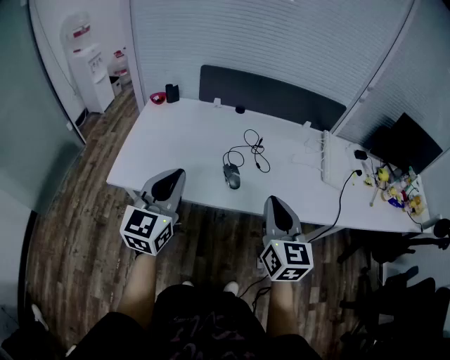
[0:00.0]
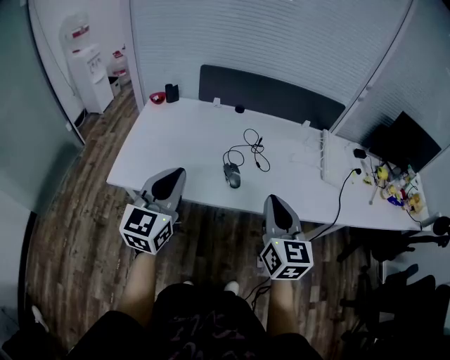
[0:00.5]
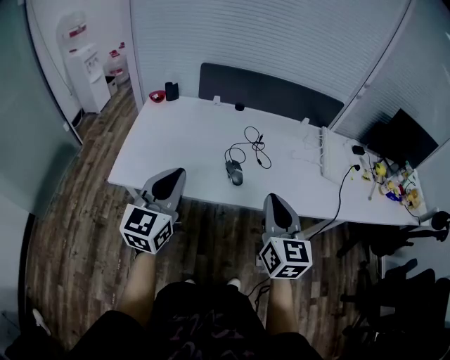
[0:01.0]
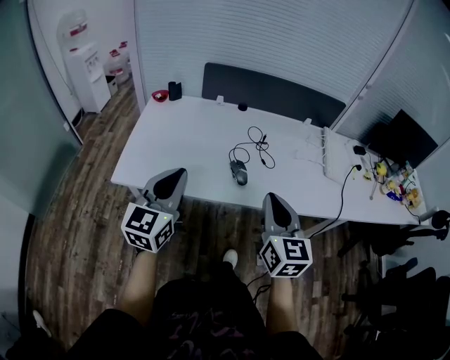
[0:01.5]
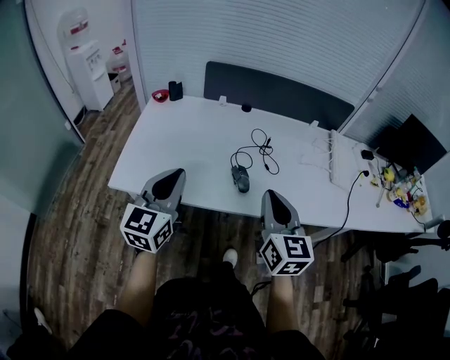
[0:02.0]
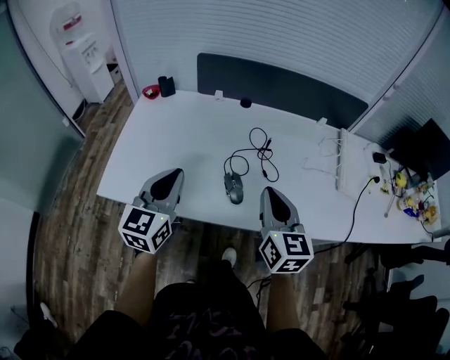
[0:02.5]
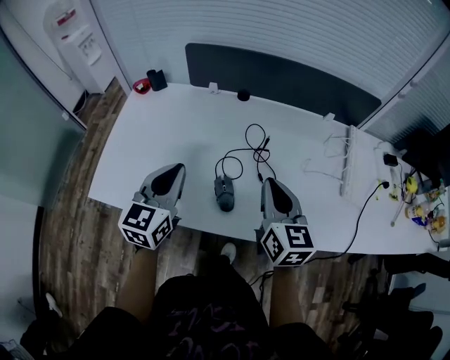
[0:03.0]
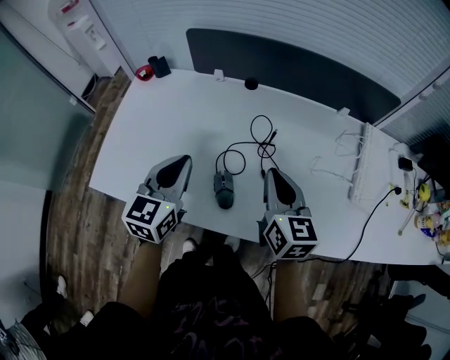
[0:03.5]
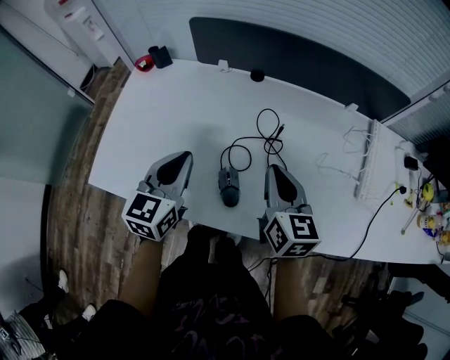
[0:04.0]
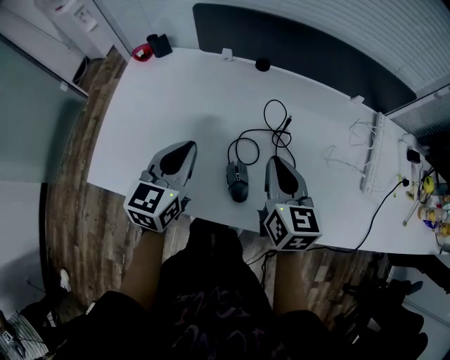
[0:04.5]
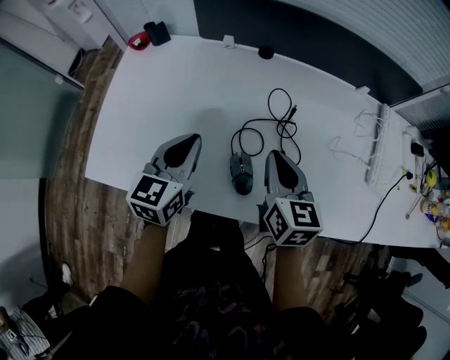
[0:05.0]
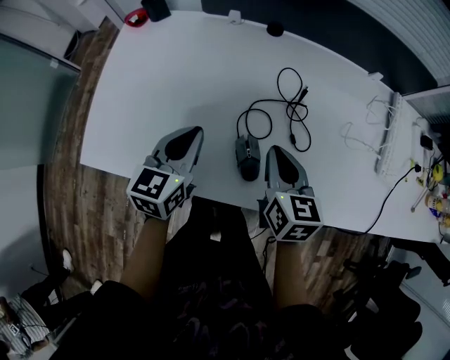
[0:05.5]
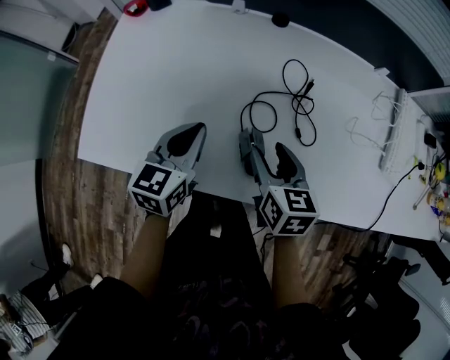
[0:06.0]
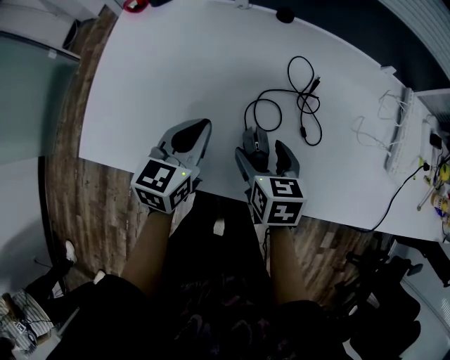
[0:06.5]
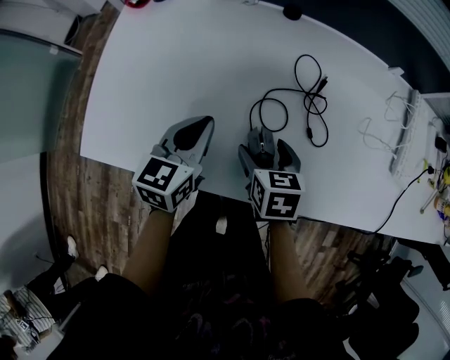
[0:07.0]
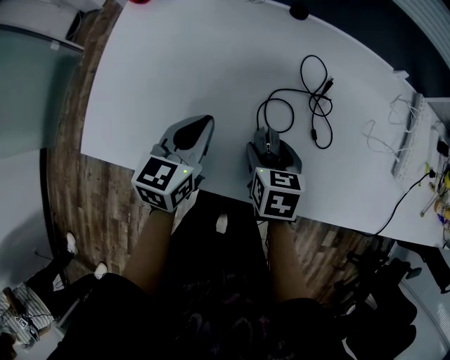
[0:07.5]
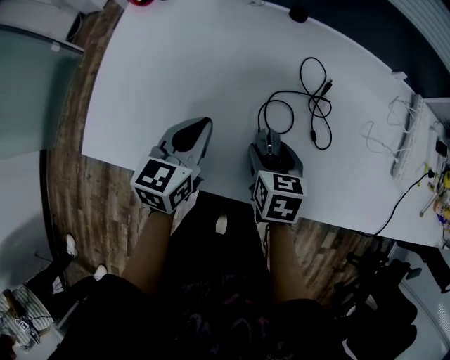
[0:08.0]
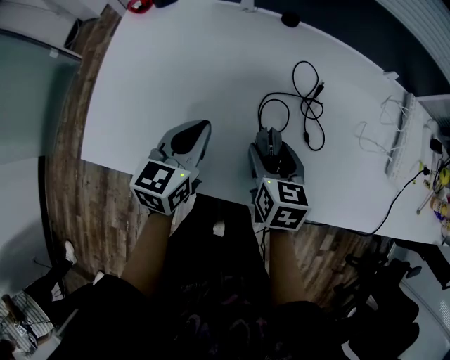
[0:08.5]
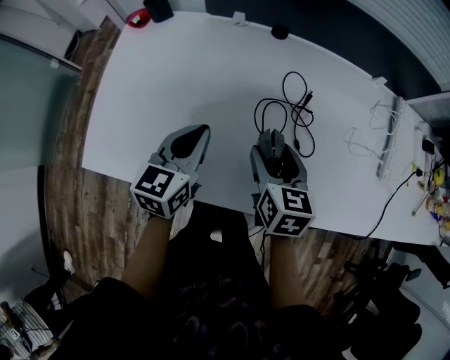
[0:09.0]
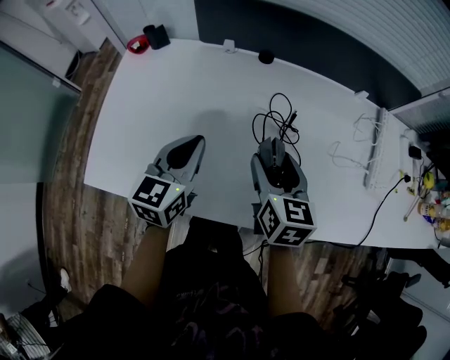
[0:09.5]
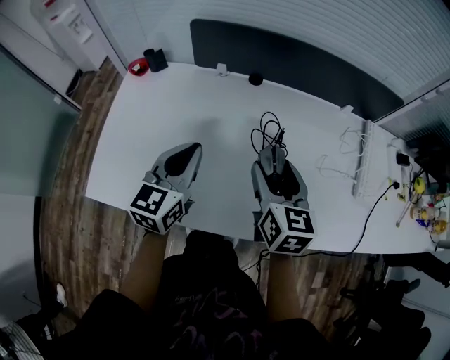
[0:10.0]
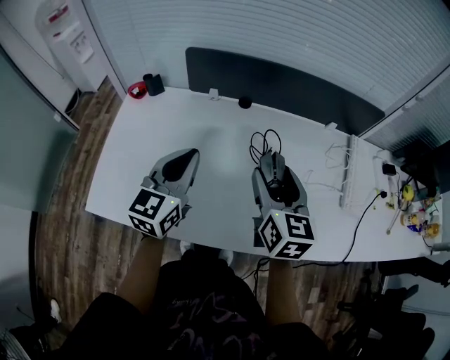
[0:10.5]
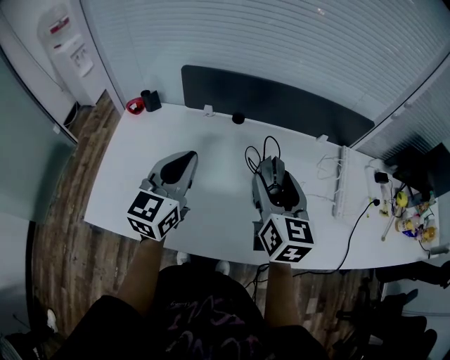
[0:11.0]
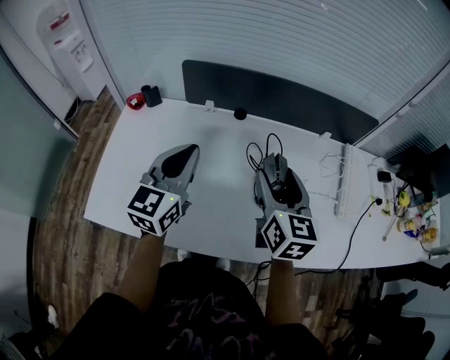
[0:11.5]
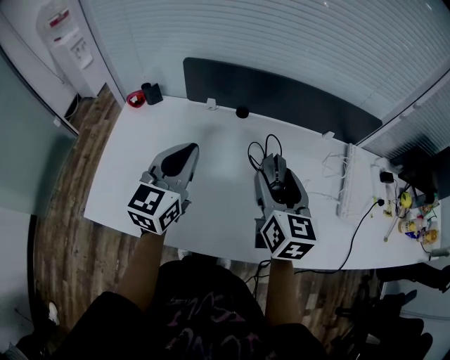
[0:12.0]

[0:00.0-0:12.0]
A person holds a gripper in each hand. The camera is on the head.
0:00.0 to 0:02.0: The left gripper shifts by about 5 cm, while the right gripper goes roughly 5 cm to the left.
0:02.0 to 0:04.0: The left gripper is displaced forward, downward and to the right by roughly 25 cm, while the right gripper heads forward and downward, covering some 25 cm.
0:04.0 to 0:06.0: The left gripper is displaced downward by some 10 cm. The right gripper goes some 15 cm downward and to the left, and opens up.
0:06.0 to 0:08.0: The right gripper heads downward, covering some 5 cm.
0:08.0 to 0:10.0: The two grippers go approximately 15 cm upward. The right gripper changes its angle by roughly 30 degrees.
0:10.0 to 0:12.0: The grippers both shift upward by some 5 cm.

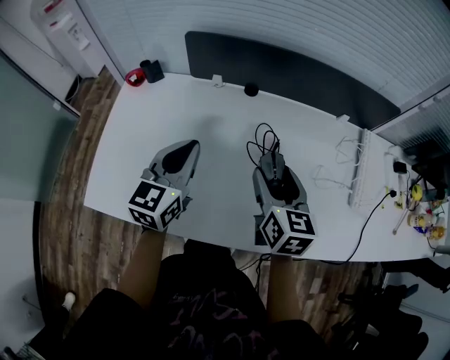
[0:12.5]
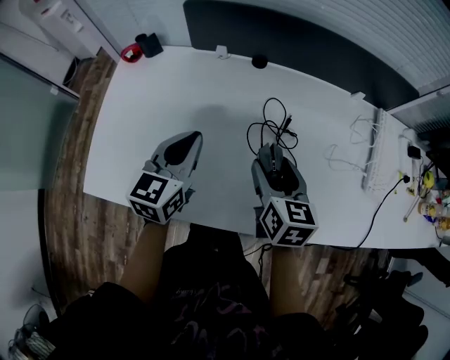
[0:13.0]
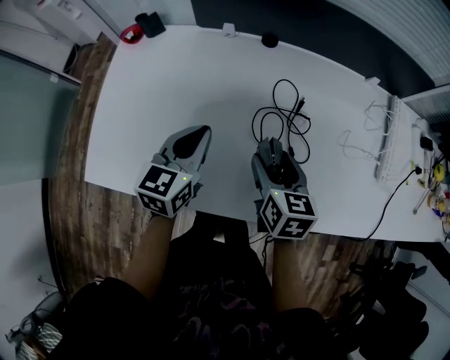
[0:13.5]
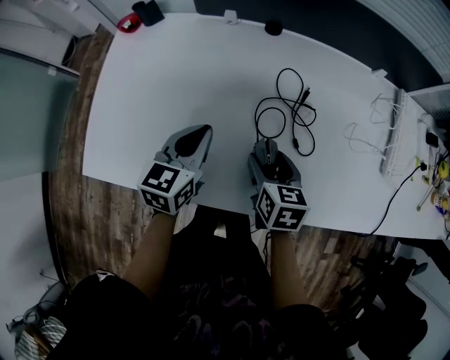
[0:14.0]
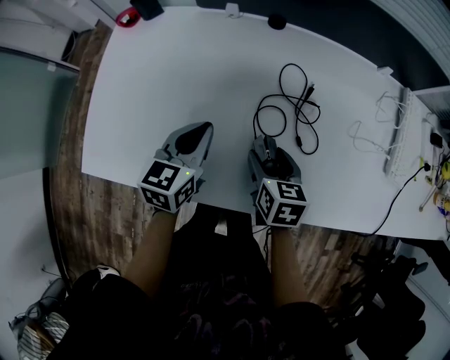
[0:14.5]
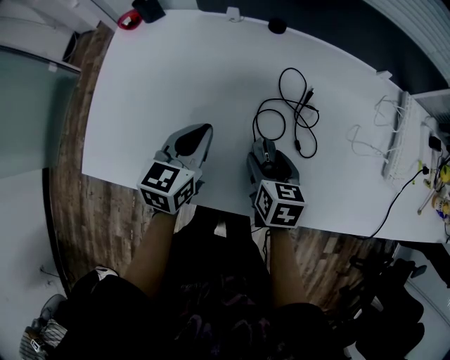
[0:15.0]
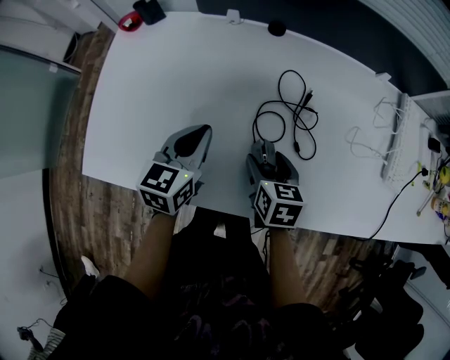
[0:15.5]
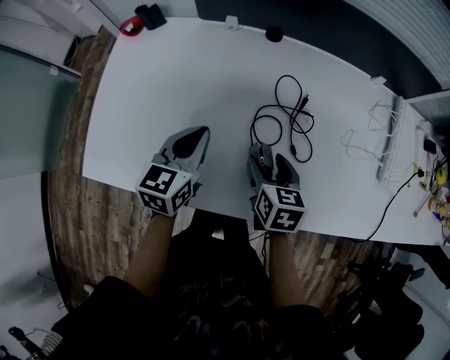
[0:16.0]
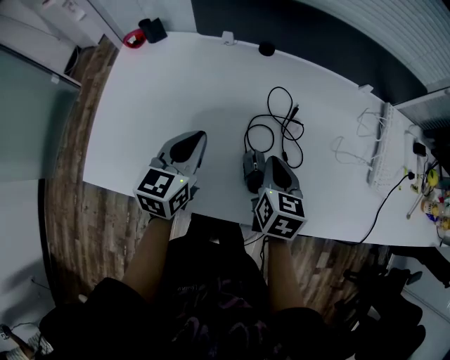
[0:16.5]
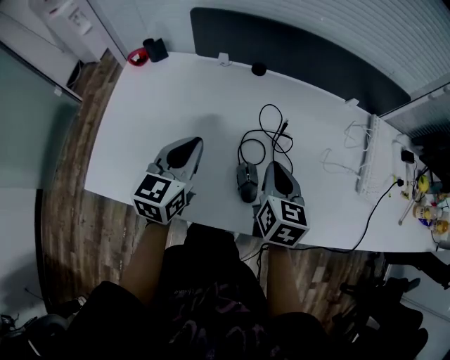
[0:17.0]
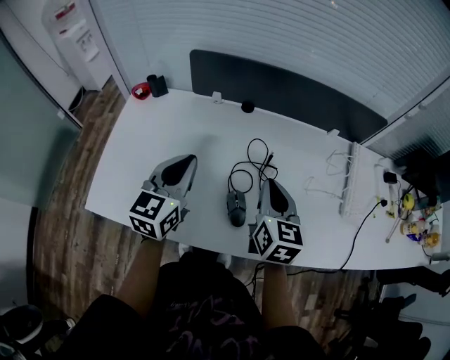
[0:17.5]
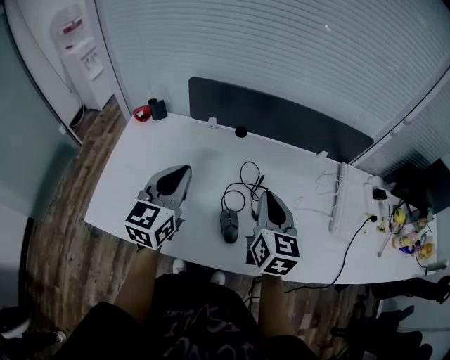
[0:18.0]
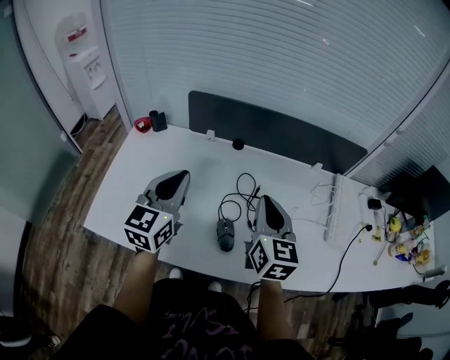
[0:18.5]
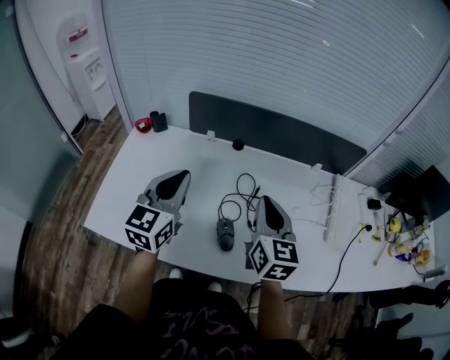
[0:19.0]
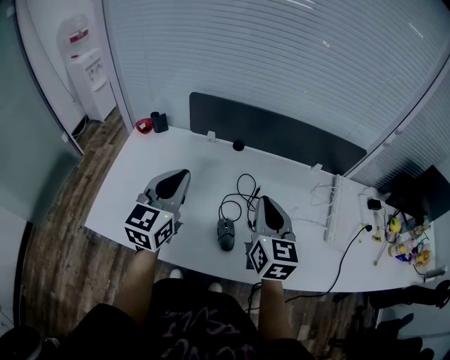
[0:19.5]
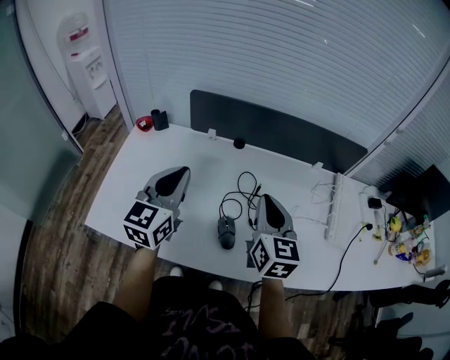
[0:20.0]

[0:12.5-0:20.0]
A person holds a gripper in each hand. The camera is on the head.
0:12.5 to 0:14.5: The two grippers go some 15 cm downward. The right gripper rotates some 20 degrees.
0:14.5 to 0:16.5: The right gripper heads upward, covering about 5 cm, and closes.
0:16.5 to 0:18.0: The grippers both shift upward by roughly 15 cm. The right gripper swivels approximately 20 degrees.
0:18.0 to 0:20.0: There are only small adjustments of the grippers.

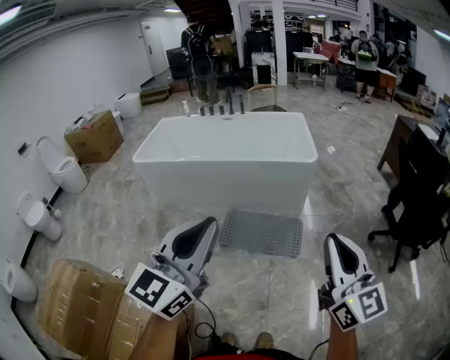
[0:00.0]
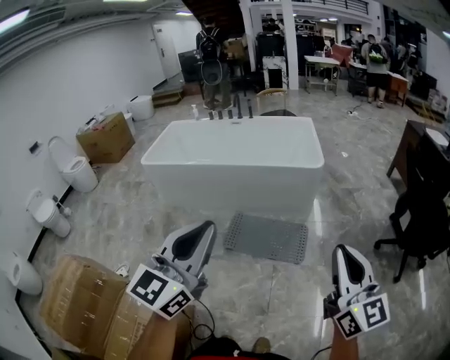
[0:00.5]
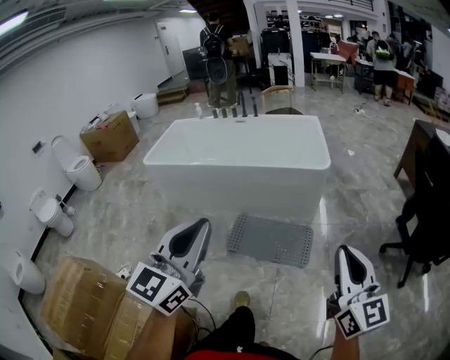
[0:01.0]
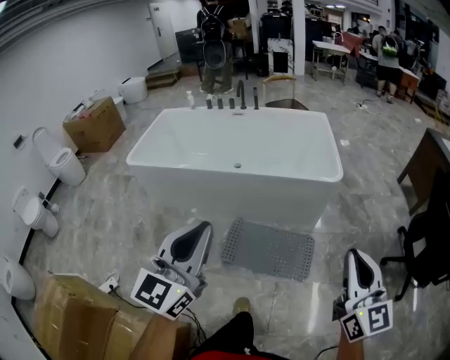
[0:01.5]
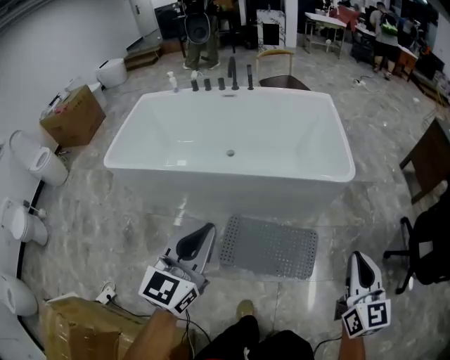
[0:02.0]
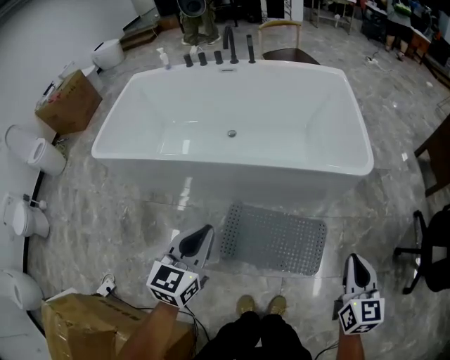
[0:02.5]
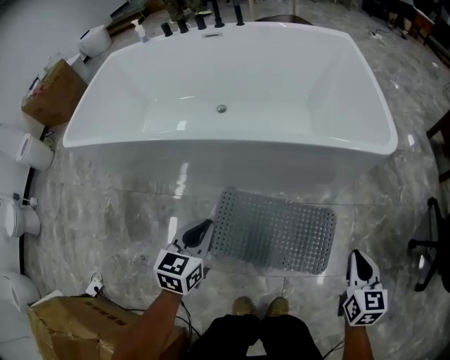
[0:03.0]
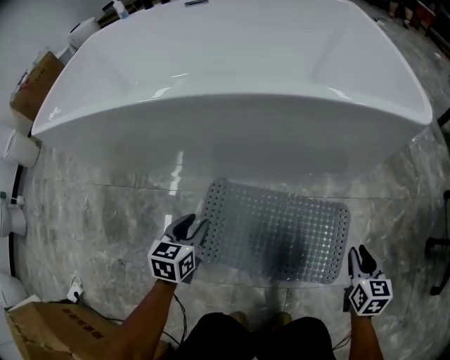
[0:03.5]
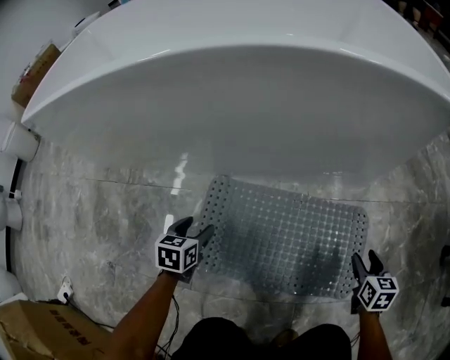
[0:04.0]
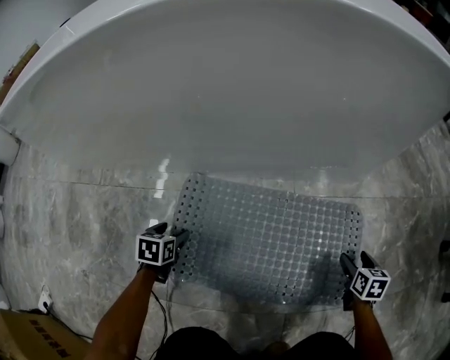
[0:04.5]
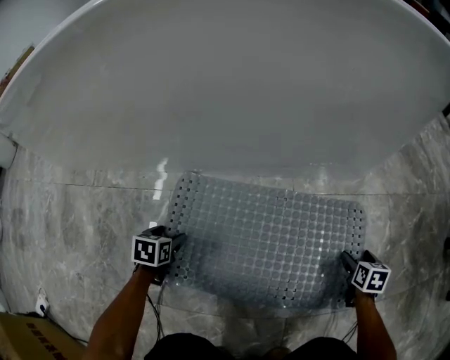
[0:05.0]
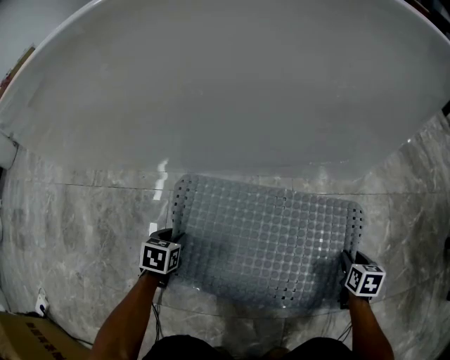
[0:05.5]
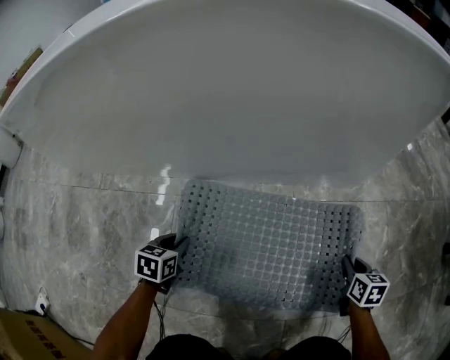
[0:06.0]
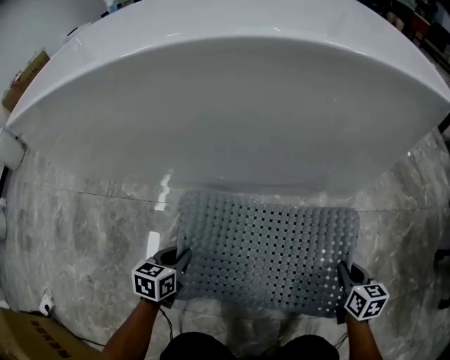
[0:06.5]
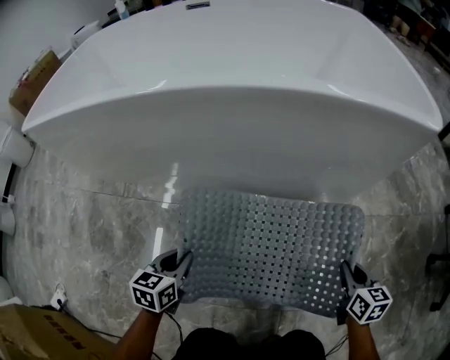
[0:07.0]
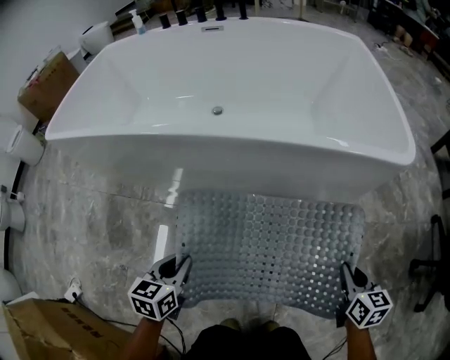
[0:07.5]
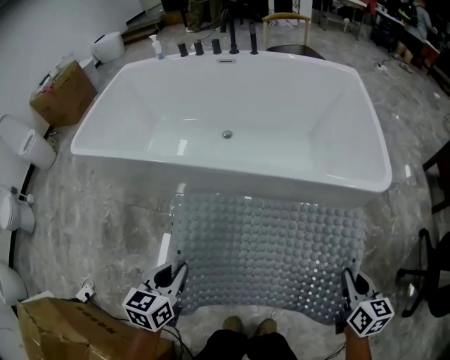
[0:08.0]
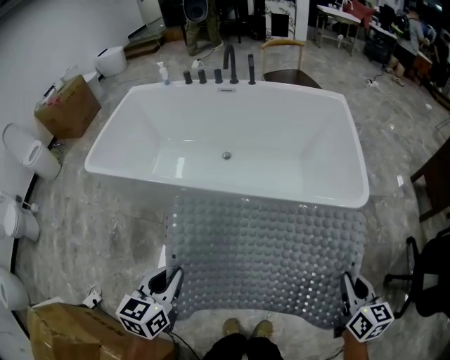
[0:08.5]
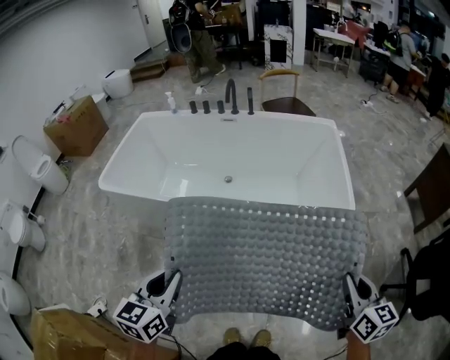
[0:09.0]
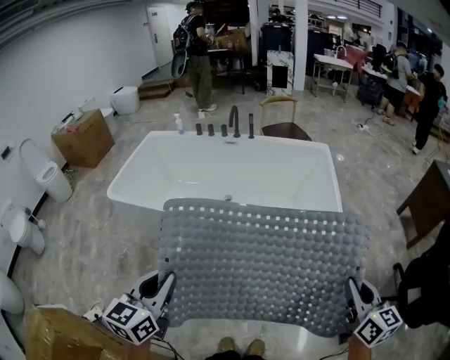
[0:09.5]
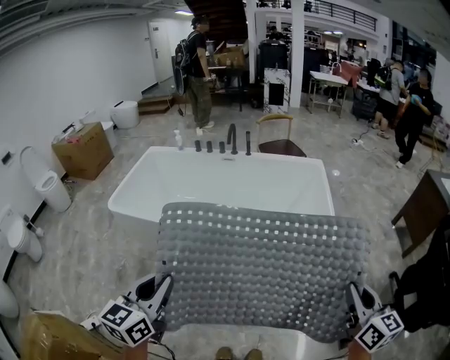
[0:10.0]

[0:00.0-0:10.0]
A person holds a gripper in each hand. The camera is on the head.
0:00.0 to 0:02.0: The two grippers travel together, forward, approximately 40 cm. Both grippers move downward, approximately 20 cm. The right gripper turns by roughly 20 degrees.
0:02.0 to 0:04.0: Both grippers travel together downward, roughly 80 cm. The left gripper angles its fingers downward, by roughly 50 degrees, and opens its fingers, while the right gripper tilts its fingers about 40 degrees downward, and opens.
0:04.0 to 0:06.0: Both grippers travel together downward, roughly 10 cm. The left gripper closes, while the right gripper closes its fingers.
0:06.0 to 0:08.0: The two grippers go approximately 50 cm upward. The left gripper changes its angle by roughly 20 degrees.
0:08.0 to 0:10.0: The two grippers go roughly 40 cm upward. The right gripper rotates about 20 degrees; the left gripper turns by some 20 degrees.
